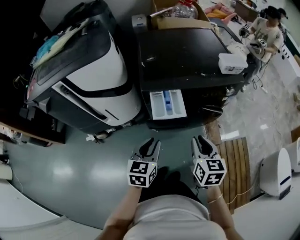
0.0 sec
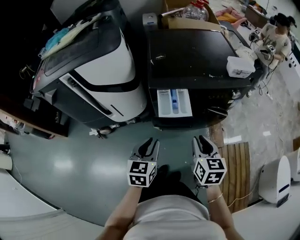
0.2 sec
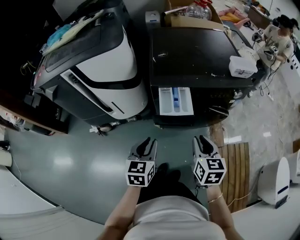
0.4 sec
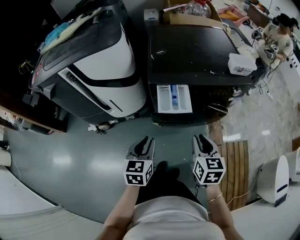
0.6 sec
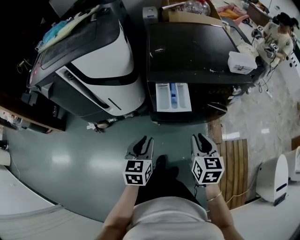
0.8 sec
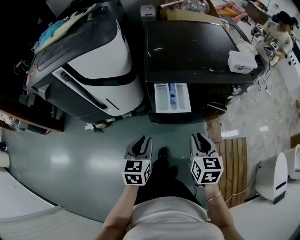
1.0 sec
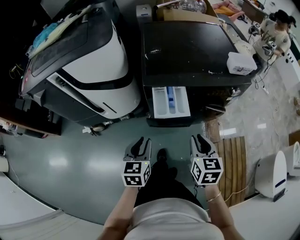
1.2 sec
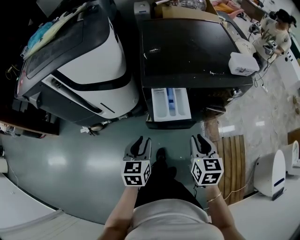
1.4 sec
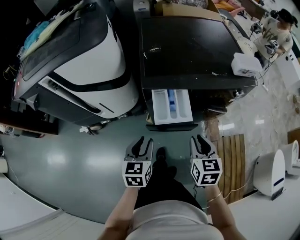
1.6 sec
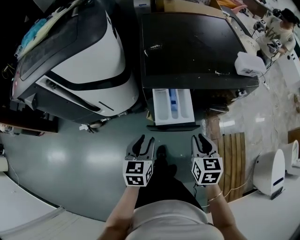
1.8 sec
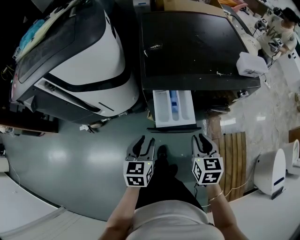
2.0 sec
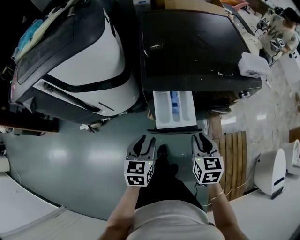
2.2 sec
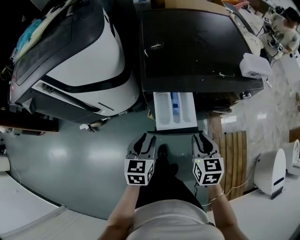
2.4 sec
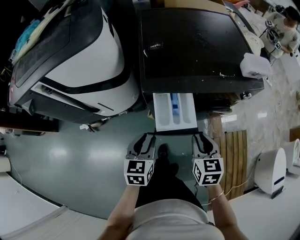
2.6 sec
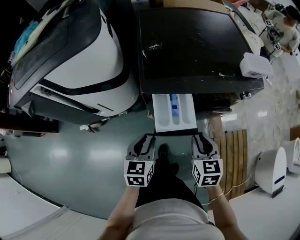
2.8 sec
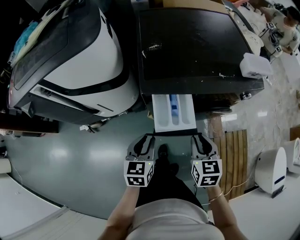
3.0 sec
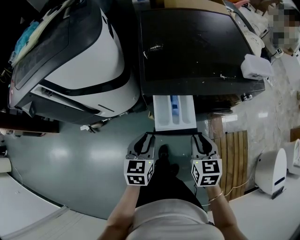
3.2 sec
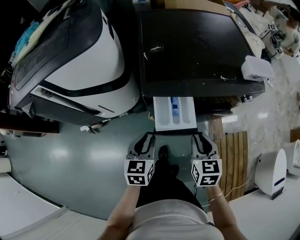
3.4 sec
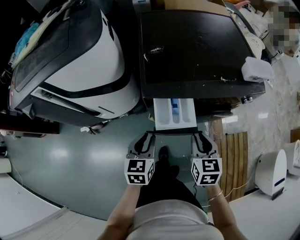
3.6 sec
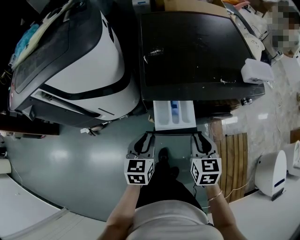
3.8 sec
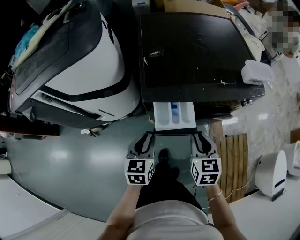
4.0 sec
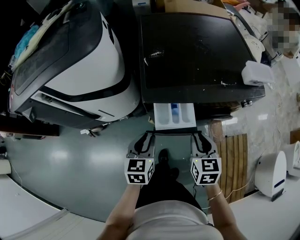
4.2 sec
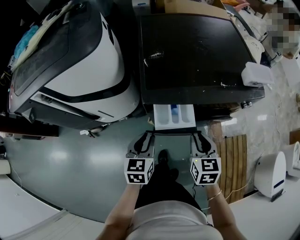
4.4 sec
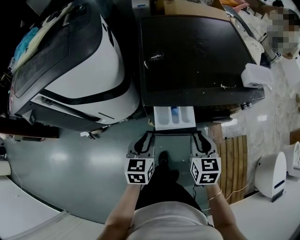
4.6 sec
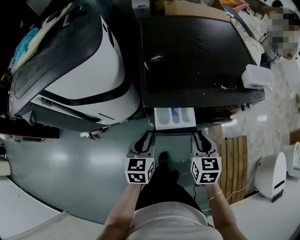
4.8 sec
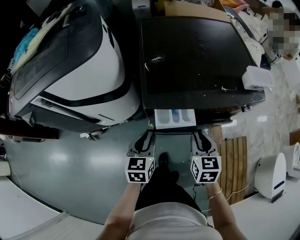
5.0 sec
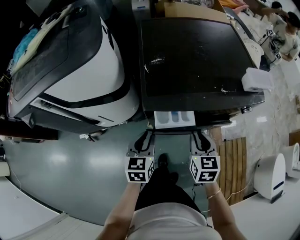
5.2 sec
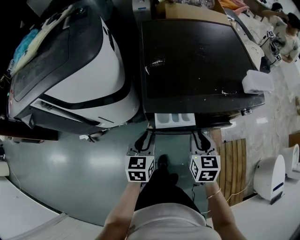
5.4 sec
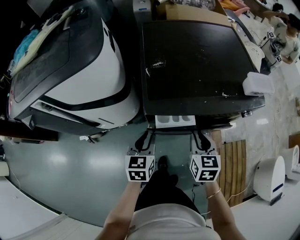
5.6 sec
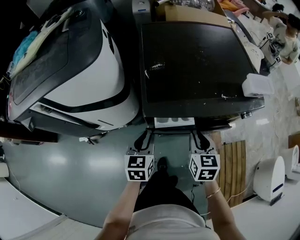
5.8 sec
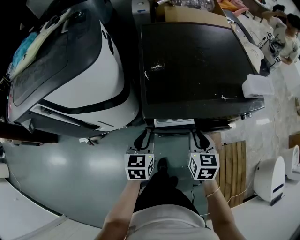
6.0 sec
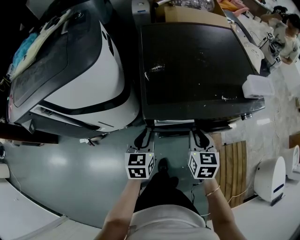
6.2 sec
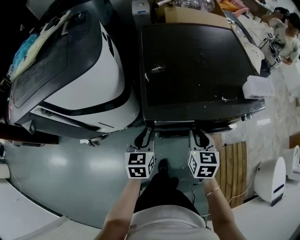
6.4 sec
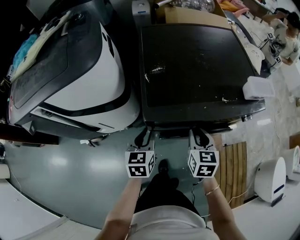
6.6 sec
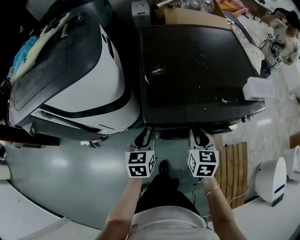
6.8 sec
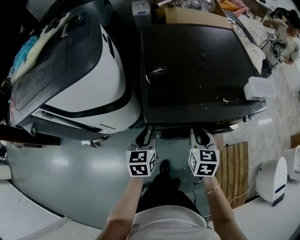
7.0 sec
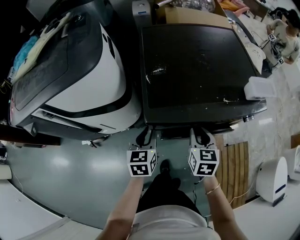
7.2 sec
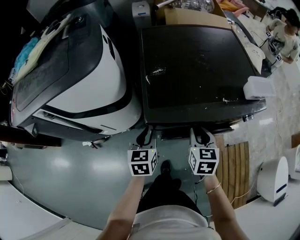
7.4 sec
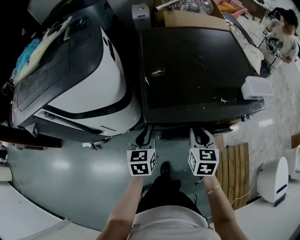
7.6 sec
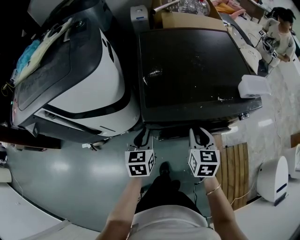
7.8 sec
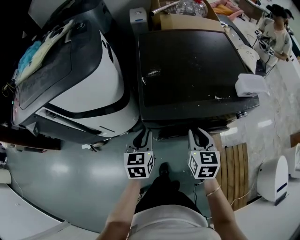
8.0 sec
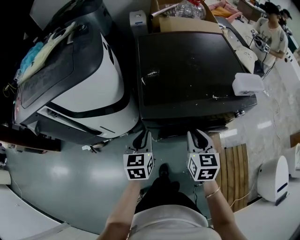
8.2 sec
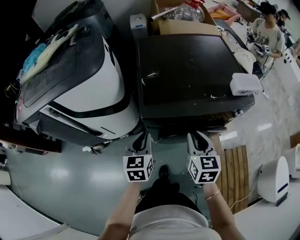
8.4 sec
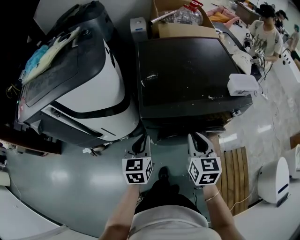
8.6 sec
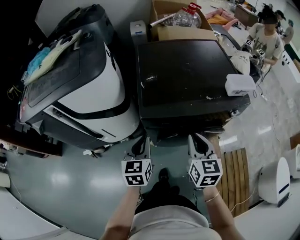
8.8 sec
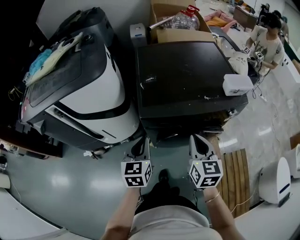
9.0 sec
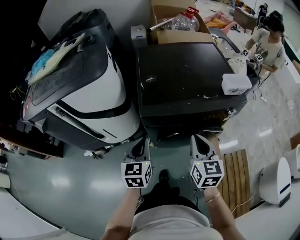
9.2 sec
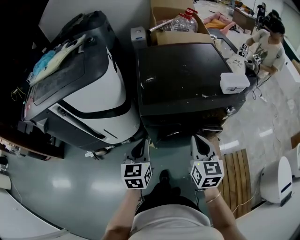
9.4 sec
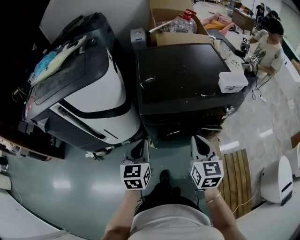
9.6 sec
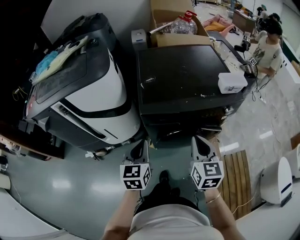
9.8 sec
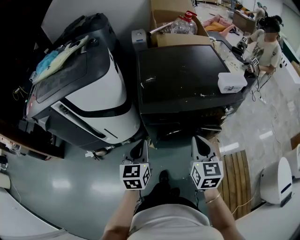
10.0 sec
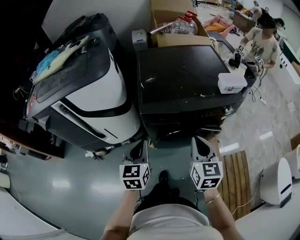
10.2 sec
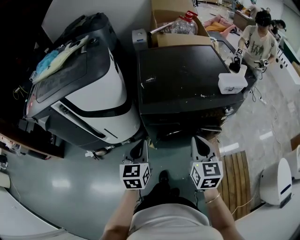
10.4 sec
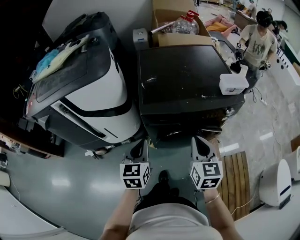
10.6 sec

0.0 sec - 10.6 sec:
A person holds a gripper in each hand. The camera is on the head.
0.0 sec - 1.6 sec: The grippers both shift downward by approximately 5 cm.
1.6 sec - 3.0 sec: The grippers make only small movements.
3.0 sec - 4.6 sec: The left gripper moves some 5 cm.
4.6 sec - 6.0 sec: The two grippers go some 5 cm forward.
6.0 sec - 7.6 sec: The grippers move only a little.
7.6 sec - 9.0 sec: The two grippers go about 10 cm upward and backward.
9.0 sec - 10.6 sec: There are only small adjustments of the grippers.

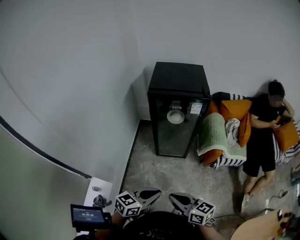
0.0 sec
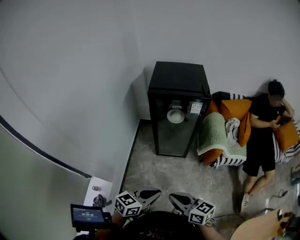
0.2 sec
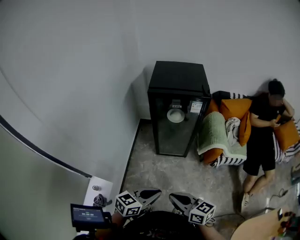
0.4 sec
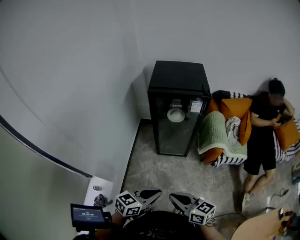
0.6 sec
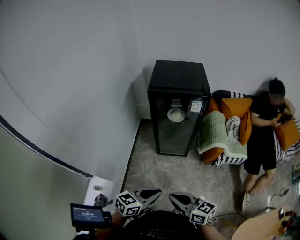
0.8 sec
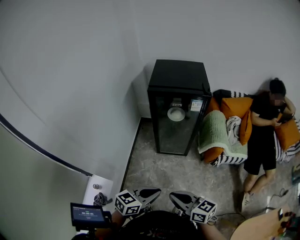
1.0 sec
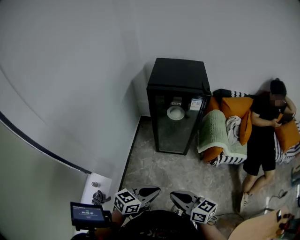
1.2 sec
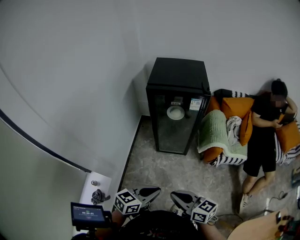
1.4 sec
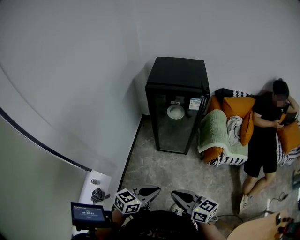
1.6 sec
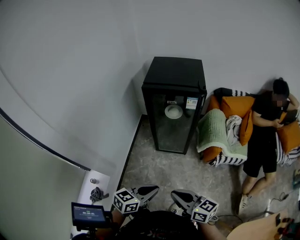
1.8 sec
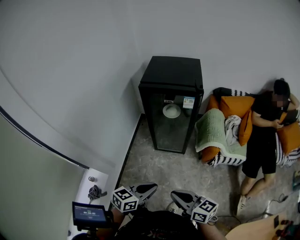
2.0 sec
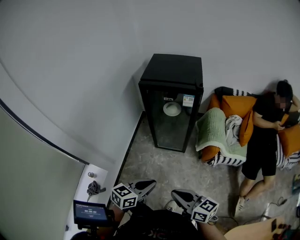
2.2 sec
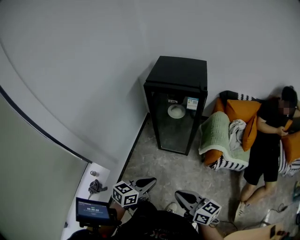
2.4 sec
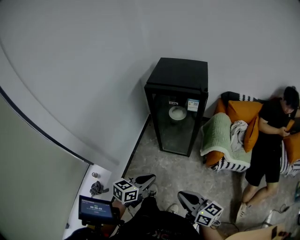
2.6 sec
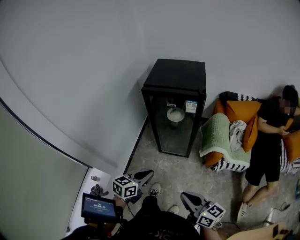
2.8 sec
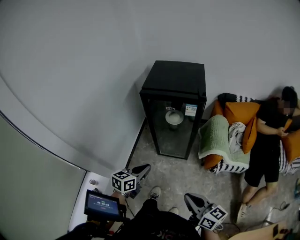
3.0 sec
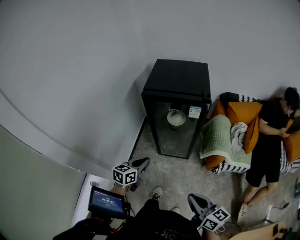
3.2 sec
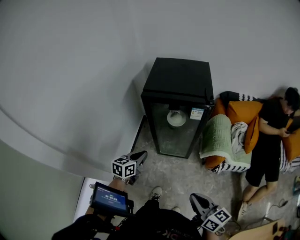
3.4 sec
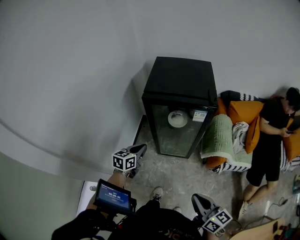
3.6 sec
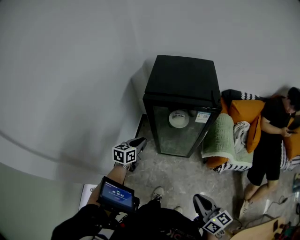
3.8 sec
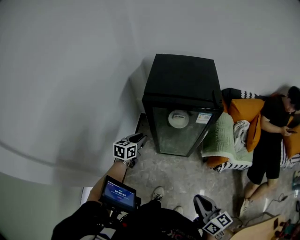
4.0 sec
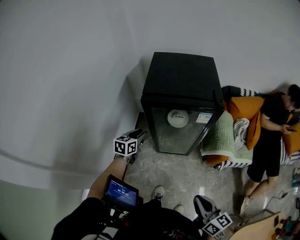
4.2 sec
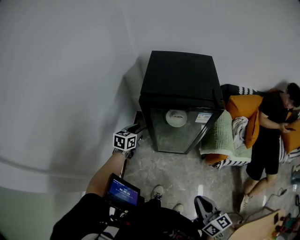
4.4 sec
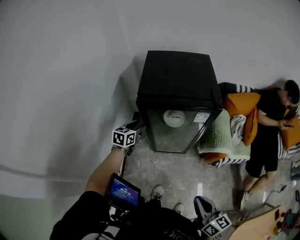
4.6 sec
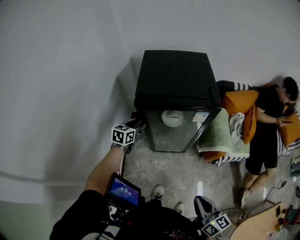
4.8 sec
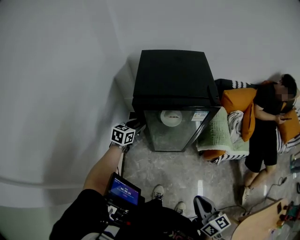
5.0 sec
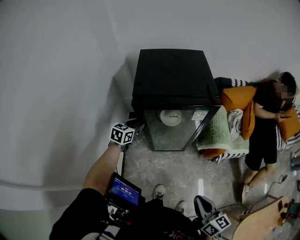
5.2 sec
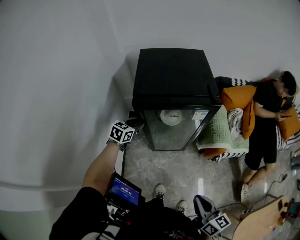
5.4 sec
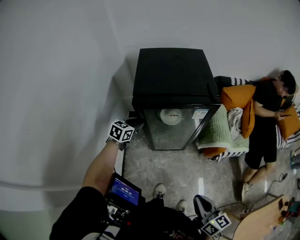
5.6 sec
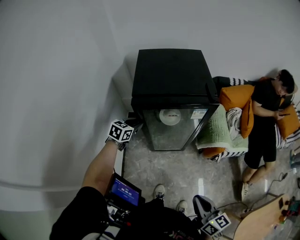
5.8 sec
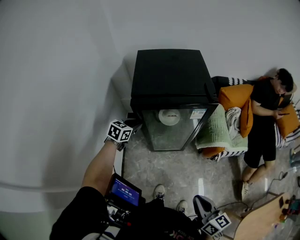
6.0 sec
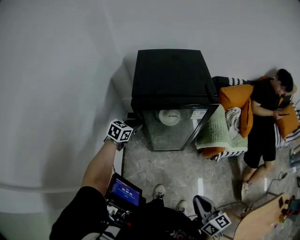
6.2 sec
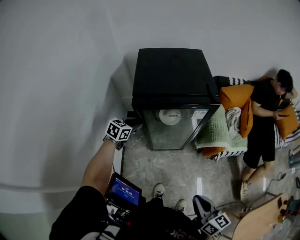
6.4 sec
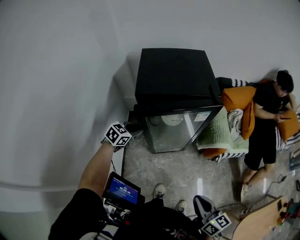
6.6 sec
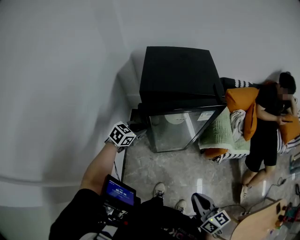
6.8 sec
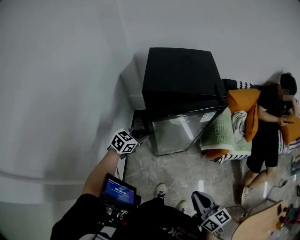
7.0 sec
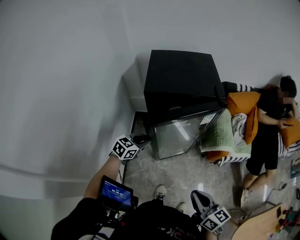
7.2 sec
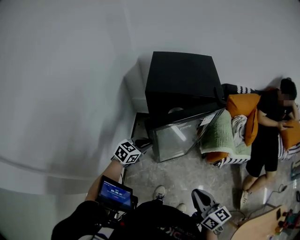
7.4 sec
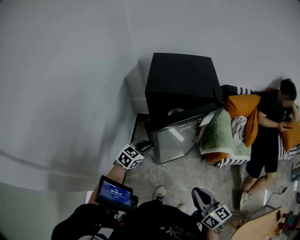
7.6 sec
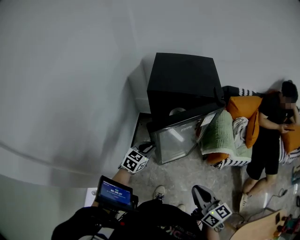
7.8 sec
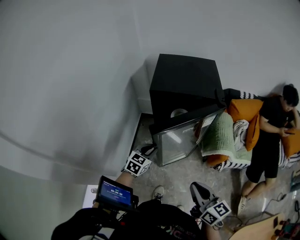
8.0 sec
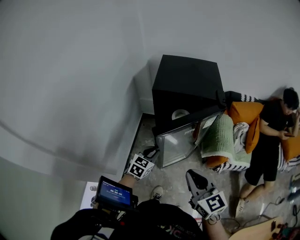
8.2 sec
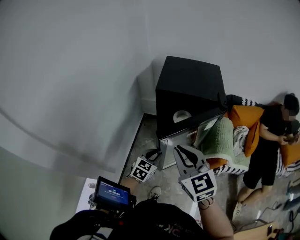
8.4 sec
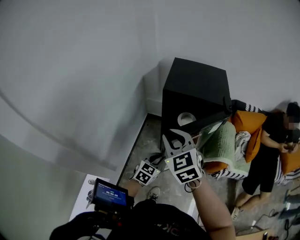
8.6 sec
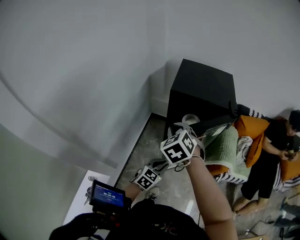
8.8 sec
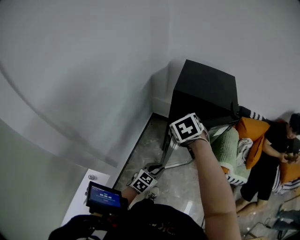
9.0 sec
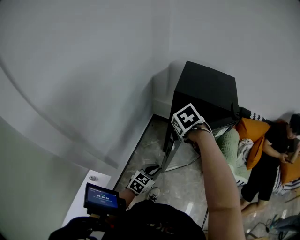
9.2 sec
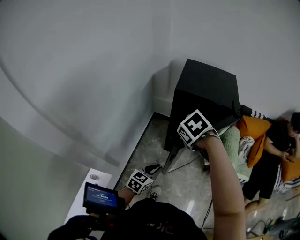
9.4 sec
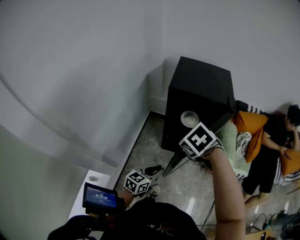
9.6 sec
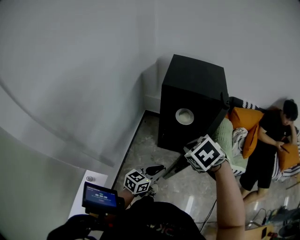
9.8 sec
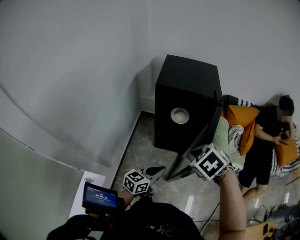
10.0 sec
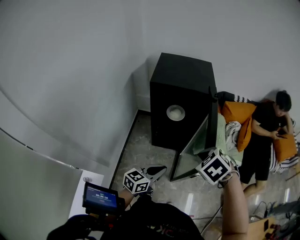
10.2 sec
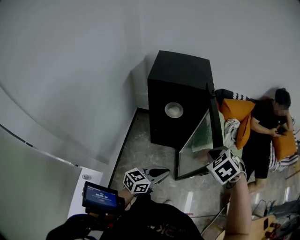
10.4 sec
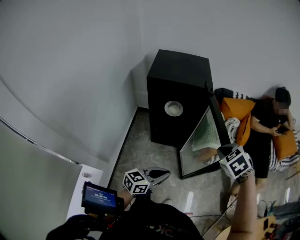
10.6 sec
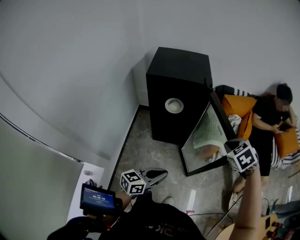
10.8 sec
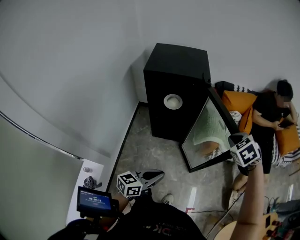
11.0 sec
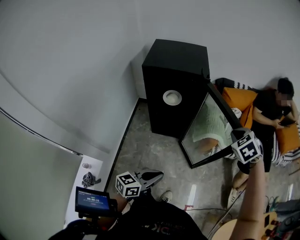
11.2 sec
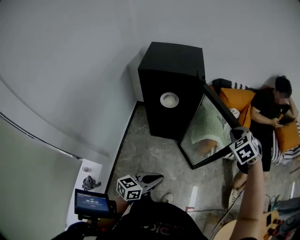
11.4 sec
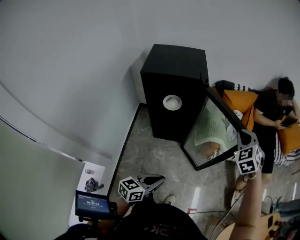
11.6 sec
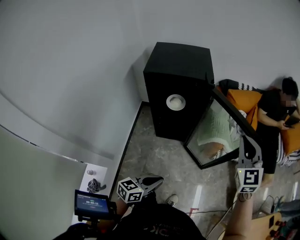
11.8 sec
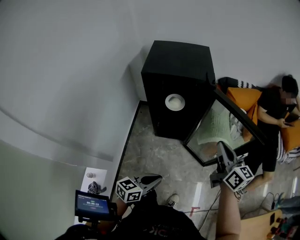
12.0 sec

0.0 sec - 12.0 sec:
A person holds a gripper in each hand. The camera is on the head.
0.0 sec - 1.6 sec: The grippers make only small movements.
1.6 sec - 3.0 sec: The right gripper travels to the right by approximately 10 cm; the left gripper travels forward by approximately 15 cm.
3.0 sec - 4.4 sec: The left gripper heads forward, covering roughly 35 cm, and opens up. The right gripper shifts about 10 cm forward.
4.4 sec - 6.0 sec: The left gripper swivels some 20 degrees.
6.0 sec - 7.6 sec: The left gripper heads backward and to the right, covering roughly 15 cm.
7.6 sec - 9.0 sec: The right gripper travels forward and to the left by some 30 cm, and tilts its fingers roughly 40 degrees downward; the left gripper is displaced backward by roughly 15 cm.
9.0 sec - 10.4 sec: The right gripper moves some 35 cm. The left gripper shifts by approximately 15 cm, and swivels some 30 degrees.
10.4 sec - 12.0 sec: The right gripper heads forward, covering roughly 5 cm, moves about 15 cm to the right and comes back, and points its fingers approximately 60 degrees further upward.

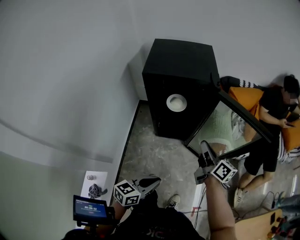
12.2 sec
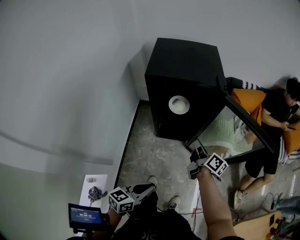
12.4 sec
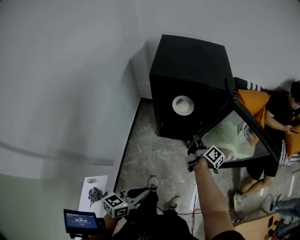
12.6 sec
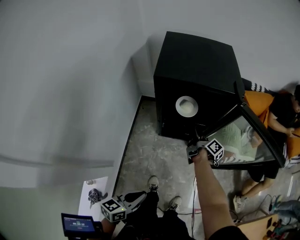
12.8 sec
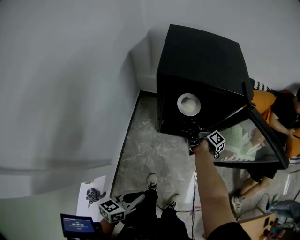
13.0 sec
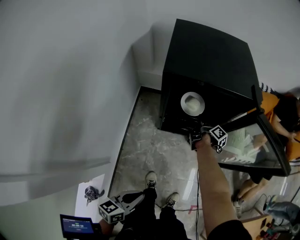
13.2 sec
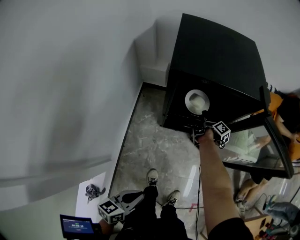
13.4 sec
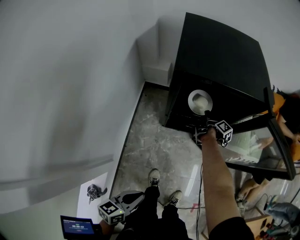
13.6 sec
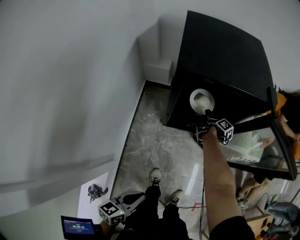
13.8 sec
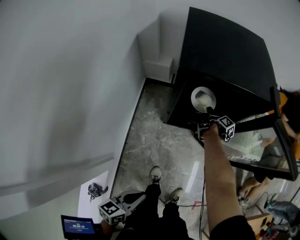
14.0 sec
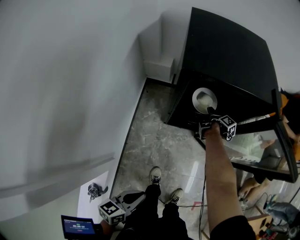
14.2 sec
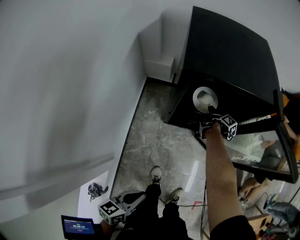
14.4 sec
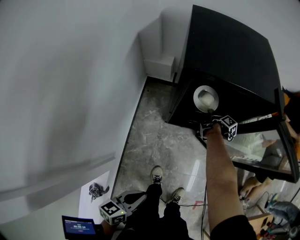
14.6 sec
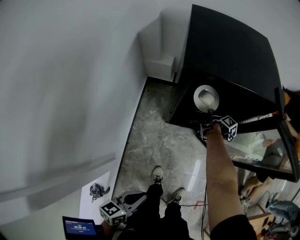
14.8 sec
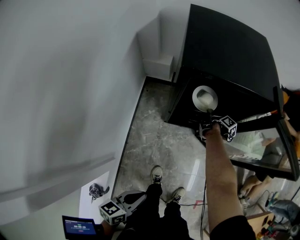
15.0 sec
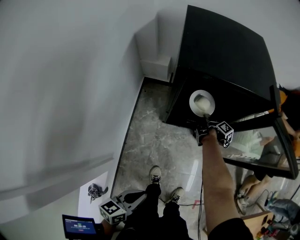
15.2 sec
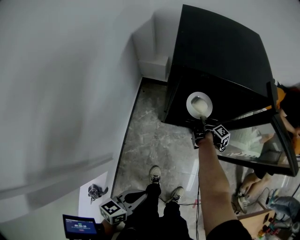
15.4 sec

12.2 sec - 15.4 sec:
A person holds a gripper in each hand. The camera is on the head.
12.2 sec - 13.8 sec: The right gripper goes roughly 40 cm downward, forward and to the left, angles its fingers downward, by some 30 degrees, and opens up; the left gripper travels to the left and downward by roughly 20 cm.
13.8 sec - 15.4 sec: The right gripper closes up.
